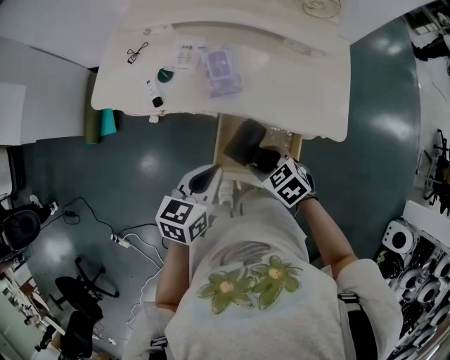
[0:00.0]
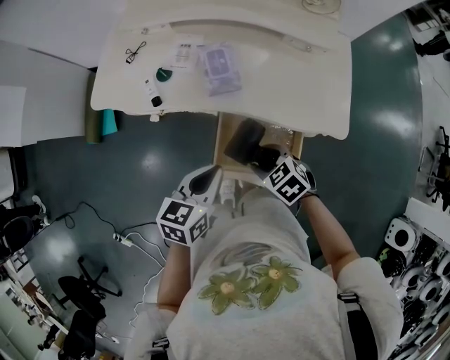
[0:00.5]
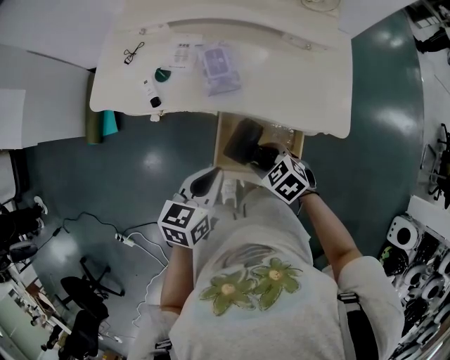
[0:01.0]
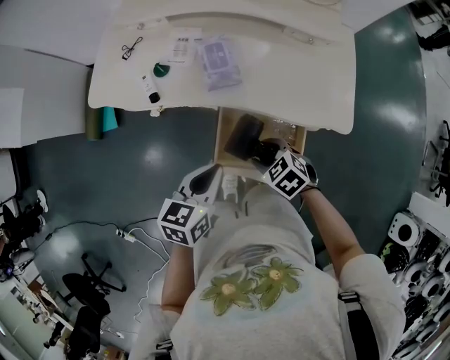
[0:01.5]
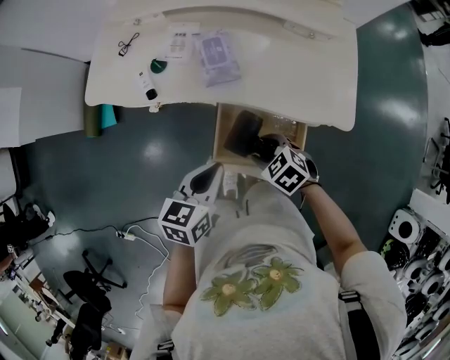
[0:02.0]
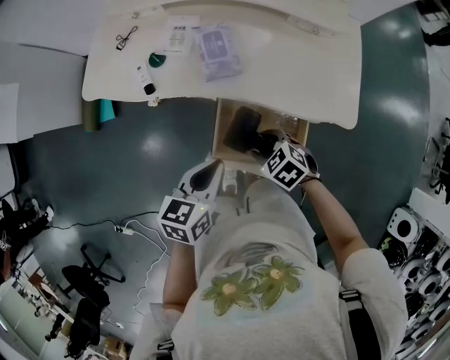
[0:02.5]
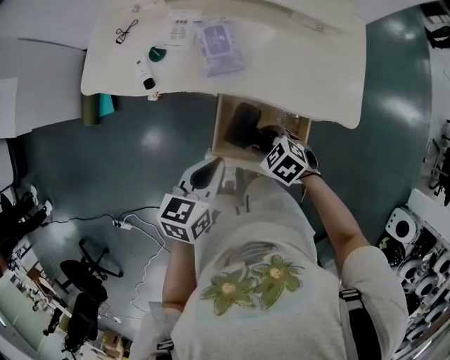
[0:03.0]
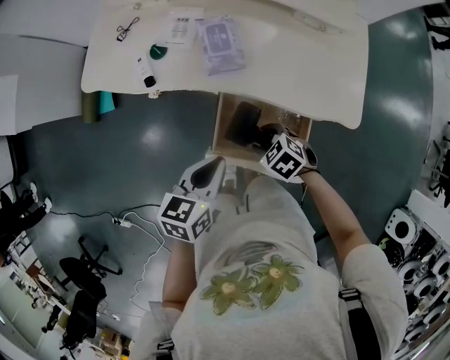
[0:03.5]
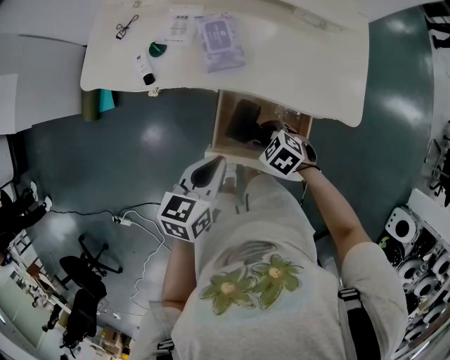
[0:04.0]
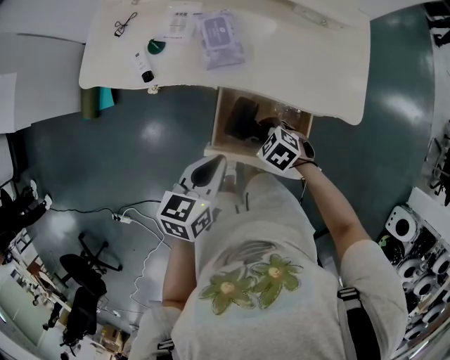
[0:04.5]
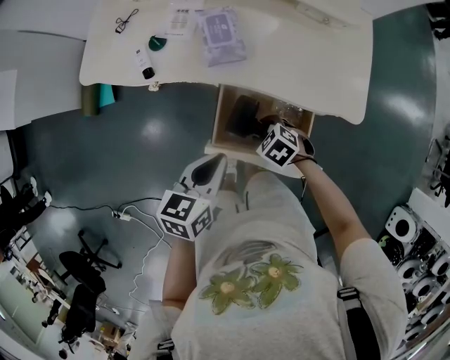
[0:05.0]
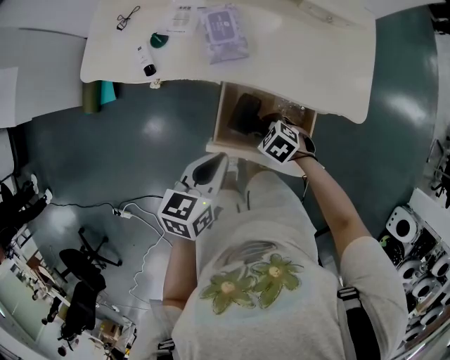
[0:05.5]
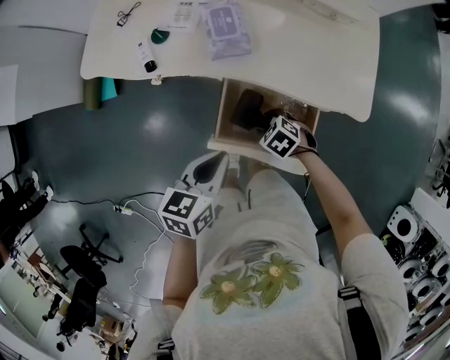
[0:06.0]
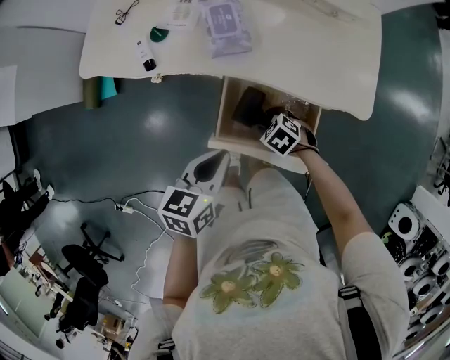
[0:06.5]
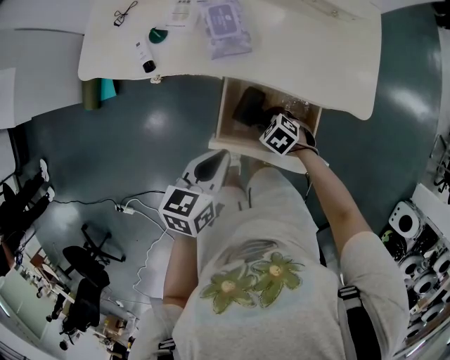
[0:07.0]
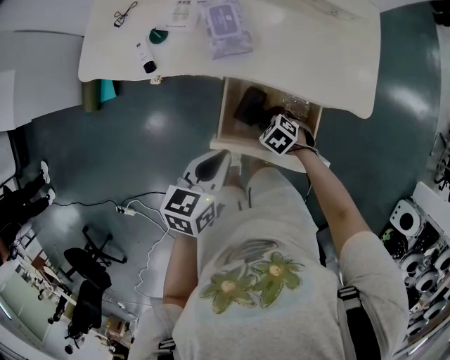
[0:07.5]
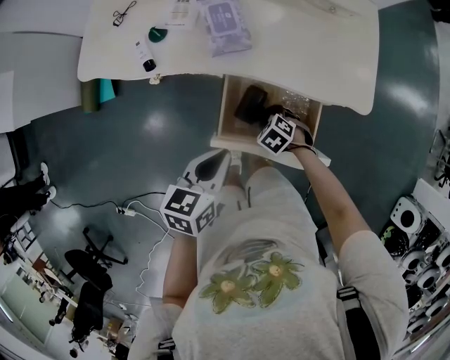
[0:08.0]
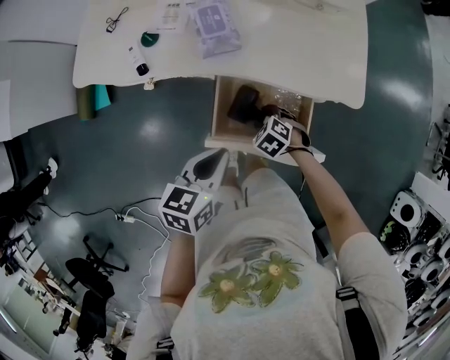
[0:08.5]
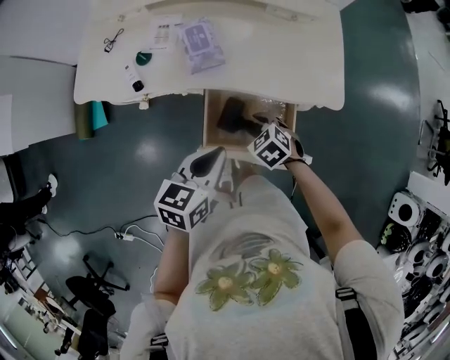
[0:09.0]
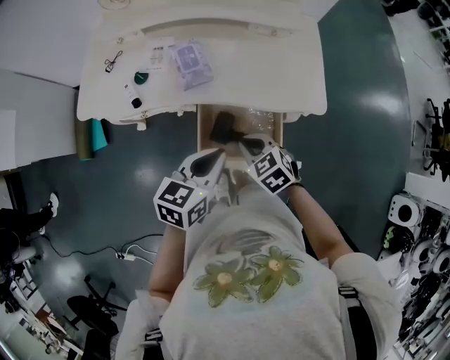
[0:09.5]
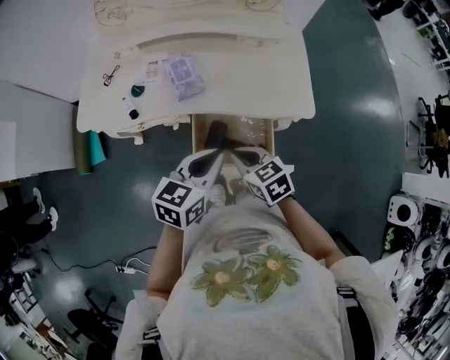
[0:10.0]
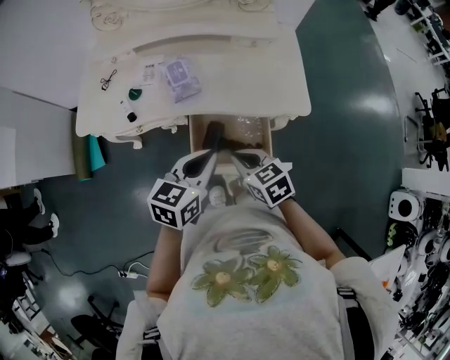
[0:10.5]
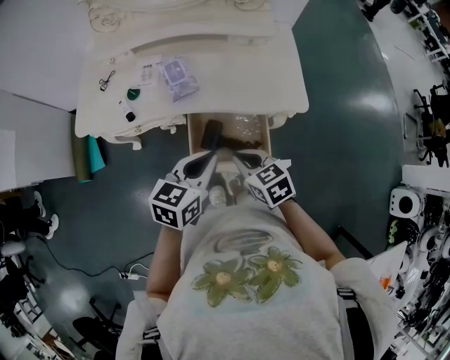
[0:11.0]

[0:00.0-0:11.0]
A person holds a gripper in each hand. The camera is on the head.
0:00.0 to 0:02.0: The grippers stay close to where they were, moving slightly.
0:02.0 to 0:03.5: The grippers move only a little.
0:03.5 to 0:05.5: The grippers move only a little.
0:05.5 to 0:07.5: The grippers make only small movements.
0:07.5 to 0:09.0: The right gripper moves upward, approximately 10 cm, while the left gripper changes place by about 5 cm.
0:09.0 to 0:11.0: The left gripper travels upward by some 5 cm; the right gripper travels upward and backward by about 15 cm, swivels approximately 30 degrees, and closes its fingers.

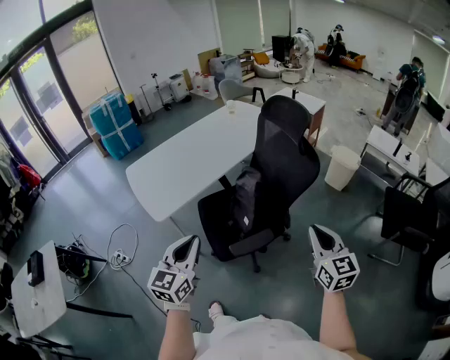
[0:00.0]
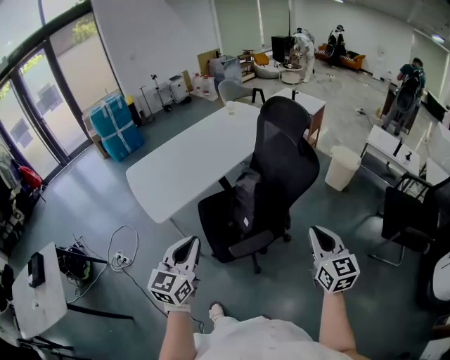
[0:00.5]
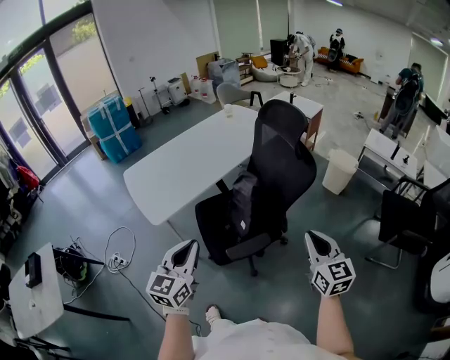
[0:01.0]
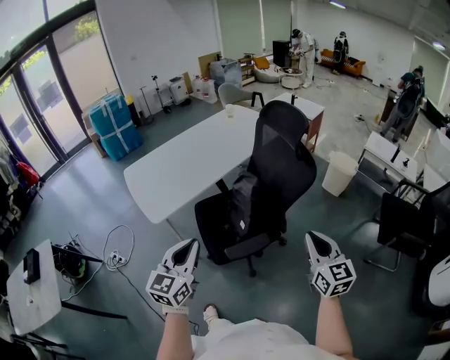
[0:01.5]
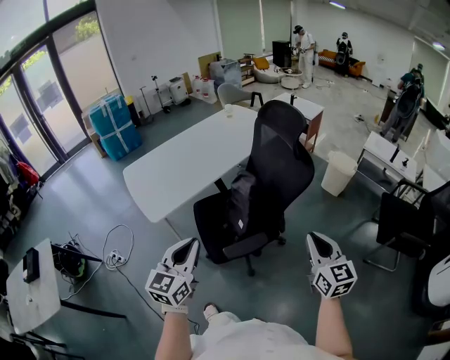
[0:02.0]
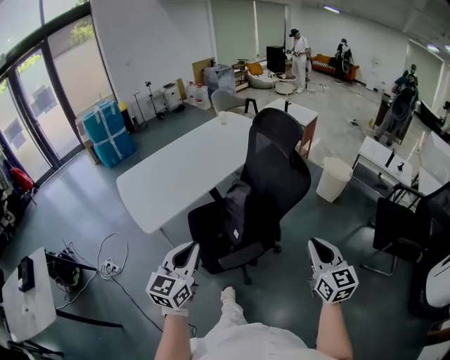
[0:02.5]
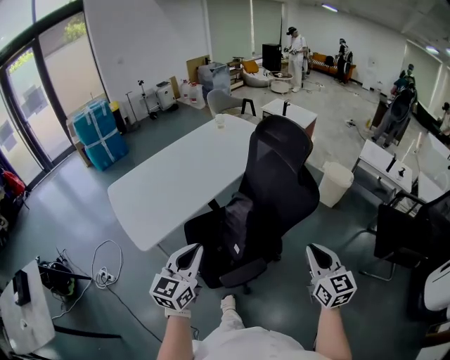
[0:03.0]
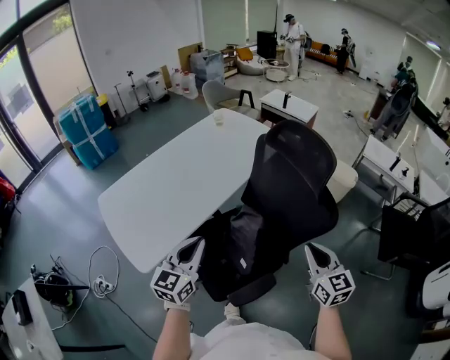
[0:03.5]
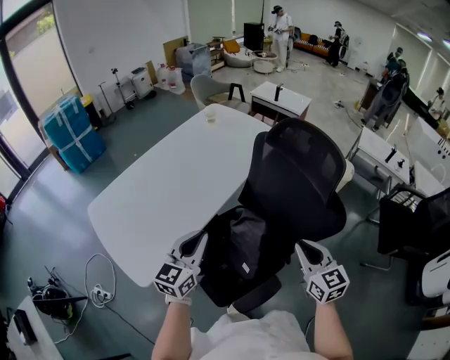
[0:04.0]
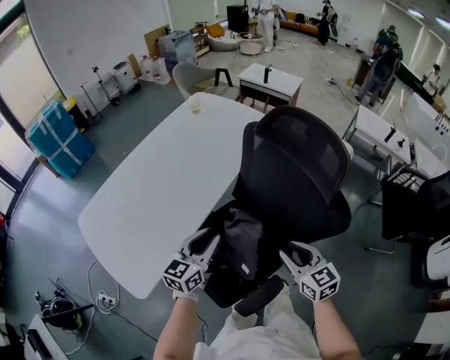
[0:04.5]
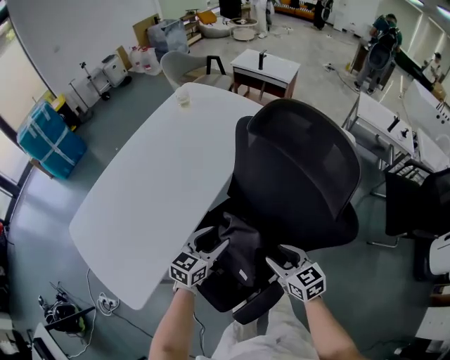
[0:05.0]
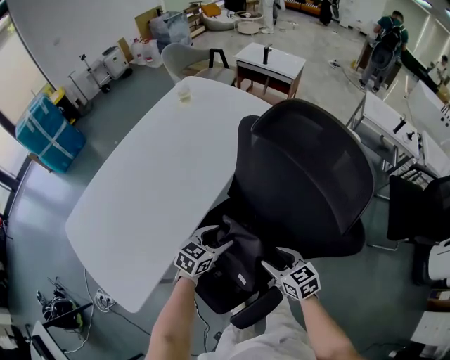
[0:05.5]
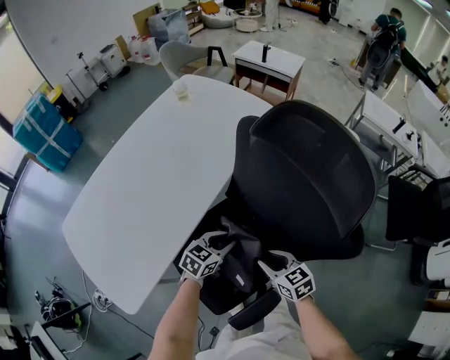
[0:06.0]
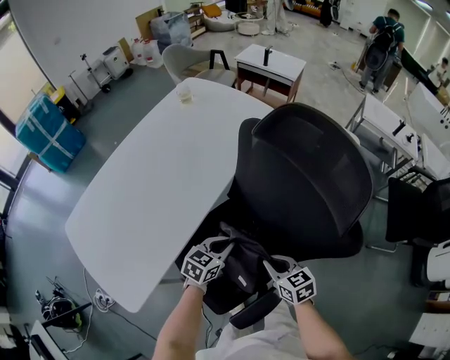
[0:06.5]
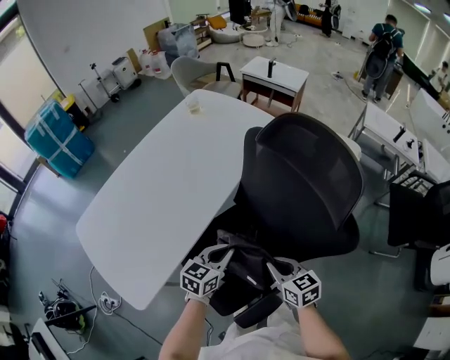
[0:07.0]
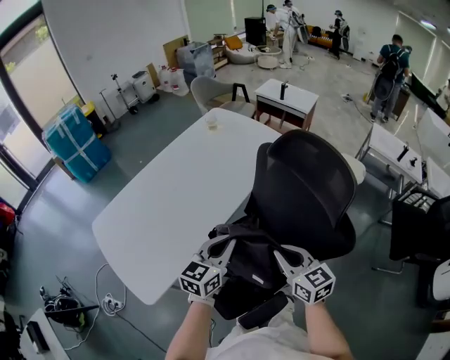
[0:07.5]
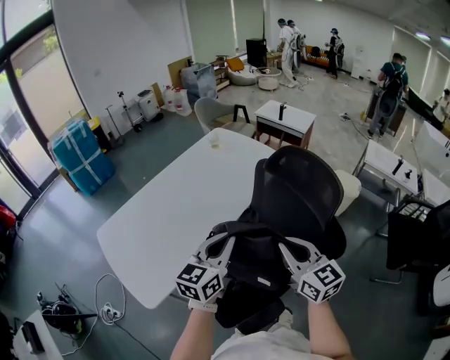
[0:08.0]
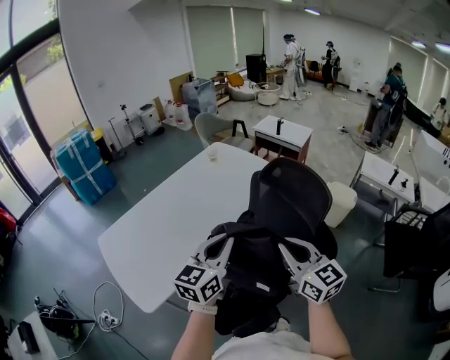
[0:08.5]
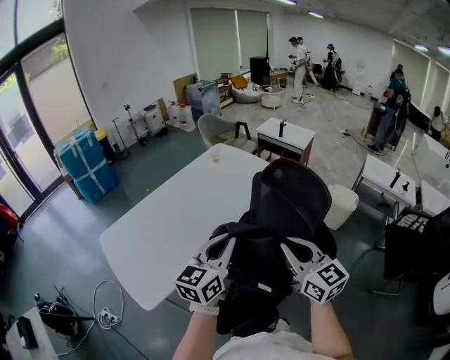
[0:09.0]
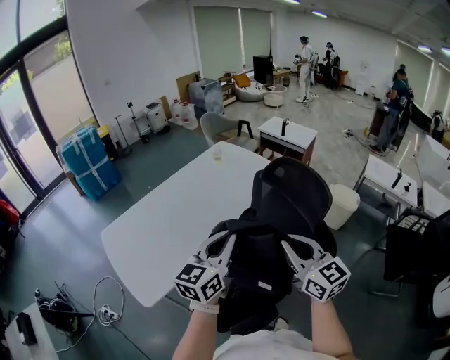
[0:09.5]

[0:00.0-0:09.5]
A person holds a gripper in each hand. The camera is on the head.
0:00.0 to 0:02.0: The grippers stay close to where they were, moving slightly.
0:02.0 to 0:04.0: The left gripper shifts approximately 35 cm forward, while the right gripper shifts approximately 25 cm forward and to the left.
0:04.0 to 0:05.5: The right gripper shifts about 20 cm downward, swivels some 30 degrees, and opens up; the left gripper shifts approximately 30 cm downward, forward and to the right, rotates approximately 40 degrees, and opens.
0:05.5 to 0:07.5: The two grippers go approximately 20 cm upward. The left gripper changes its angle by roughly 30 degrees, and closes. The right gripper closes.
0:07.5 to 0:09.5: Both grippers travel together upward, about 15 cm.

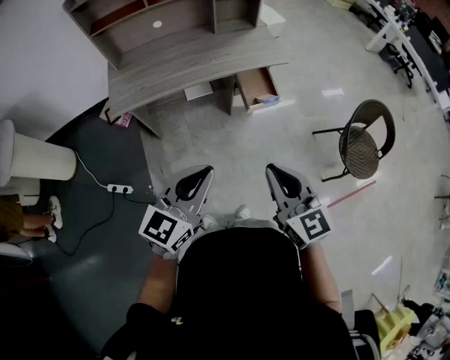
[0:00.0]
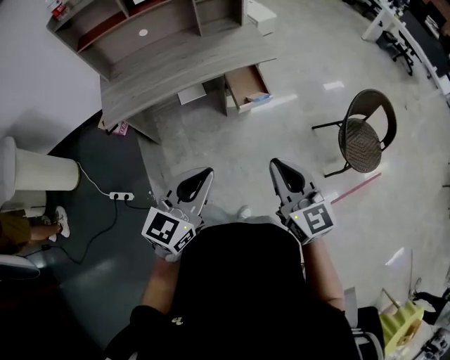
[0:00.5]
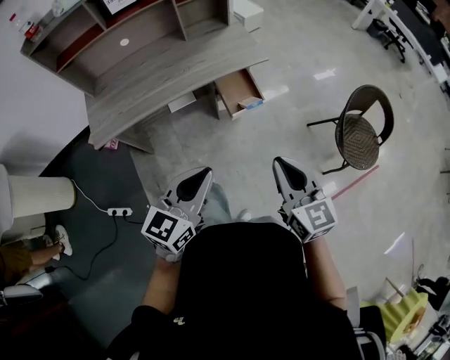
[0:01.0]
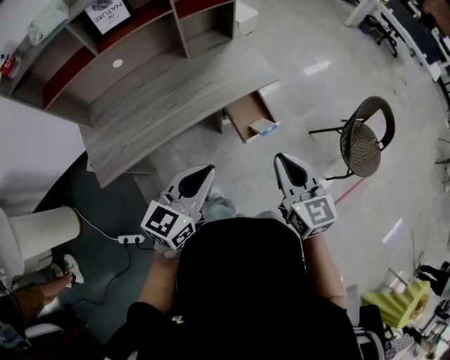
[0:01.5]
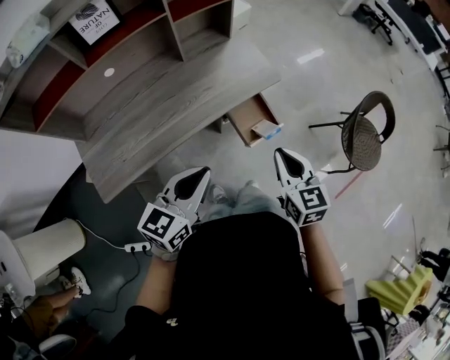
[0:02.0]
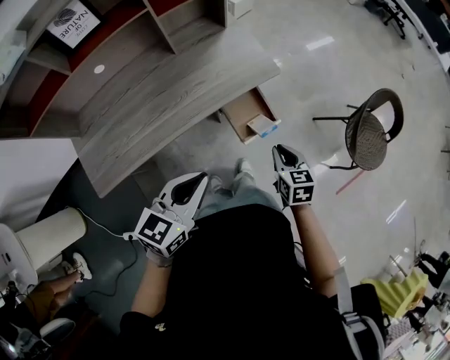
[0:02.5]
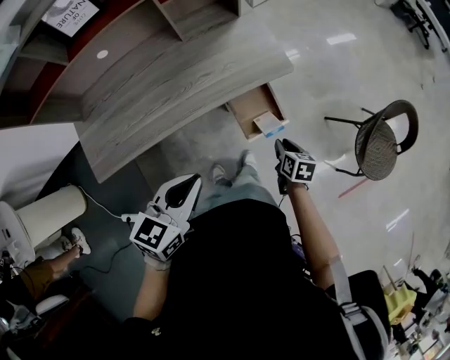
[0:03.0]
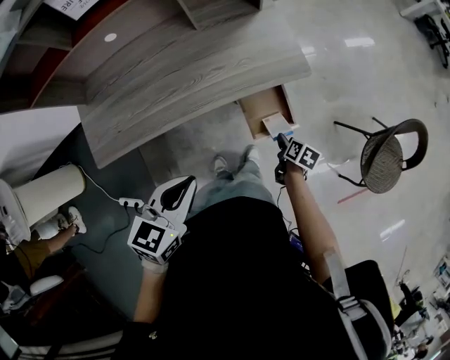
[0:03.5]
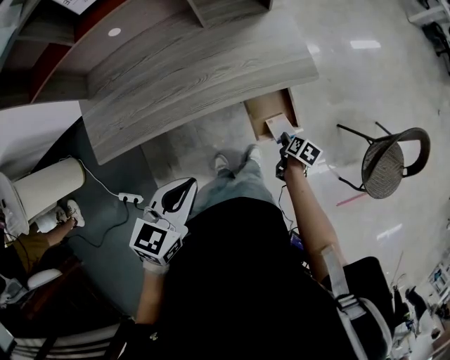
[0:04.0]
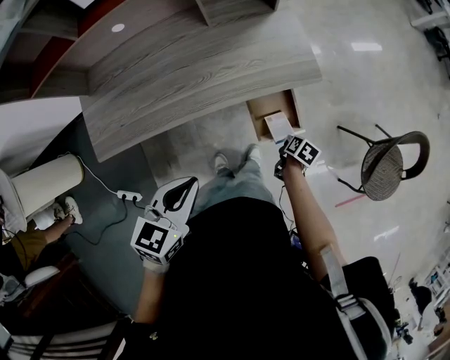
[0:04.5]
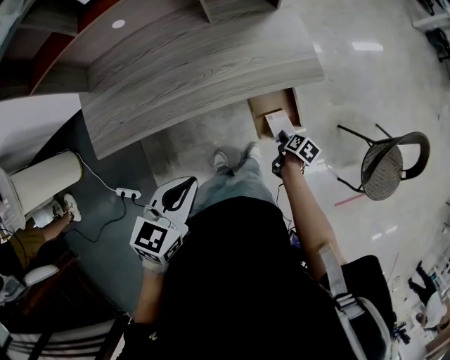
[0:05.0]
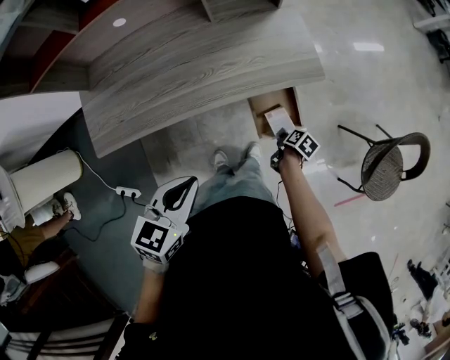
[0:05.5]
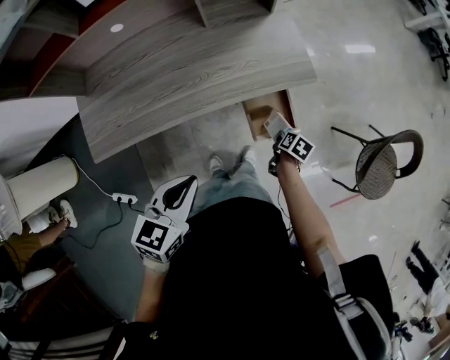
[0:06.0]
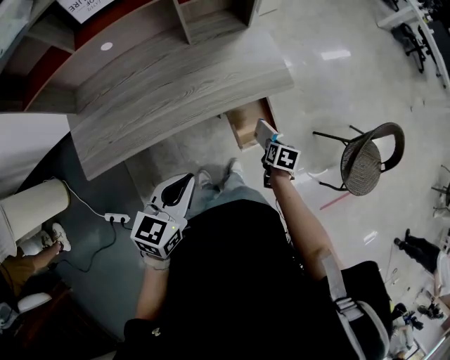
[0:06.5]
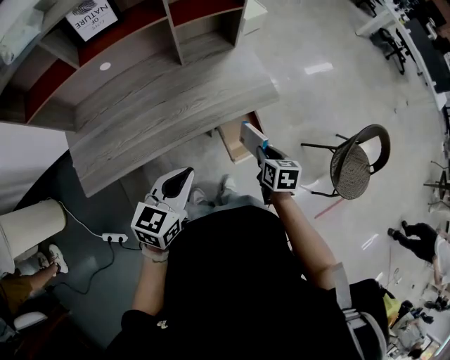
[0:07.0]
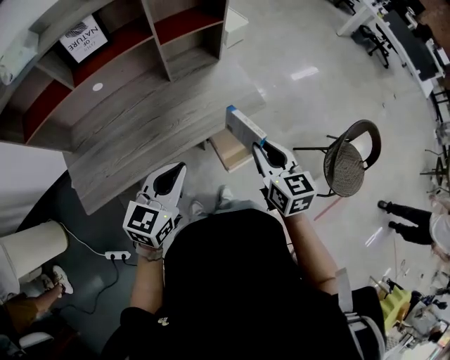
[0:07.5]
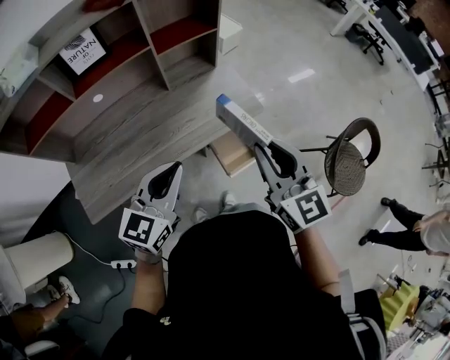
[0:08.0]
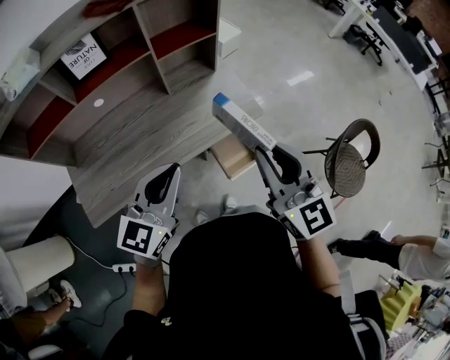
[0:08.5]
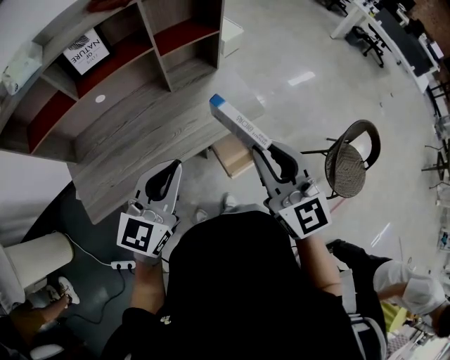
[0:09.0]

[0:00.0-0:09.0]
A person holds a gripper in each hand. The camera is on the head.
0:00.0 to 0:02.0: The grippers both shift forward by about 35 cm. The right gripper turns by approximately 30 degrees; the left gripper changes its angle by approximately 20 degrees.
0:02.0 to 0:04.5: The right gripper is displaced downward by roughly 35 cm, angles its fingers downward, by about 40 degrees, and opens and closes again. Meanwhile the left gripper shifts approximately 5 cm downward, and swivels some 30 degrees.
0:04.5 to 0:07.0: The right gripper shifts some 20 cm upward, rotates some 30 degrees, and opens, then closes once more.
0:07.0 to 0:09.0: The left gripper travels upward by approximately 15 cm, and swivels about 20 degrees. Meanwhile the right gripper is displaced upward by about 30 cm, and points its fingers roughly 50 degrees further upward.
